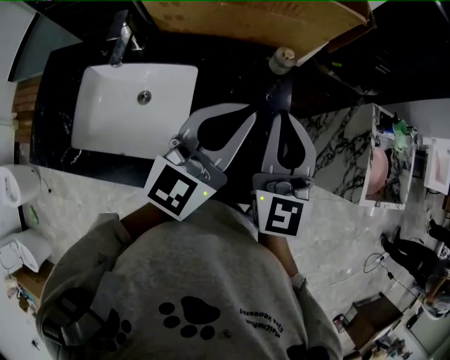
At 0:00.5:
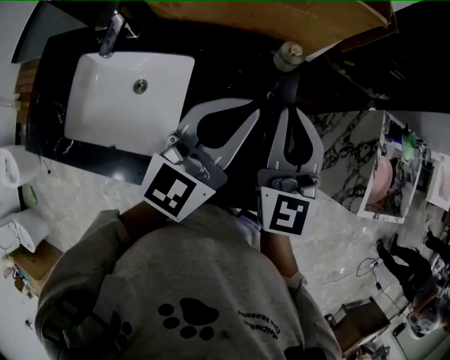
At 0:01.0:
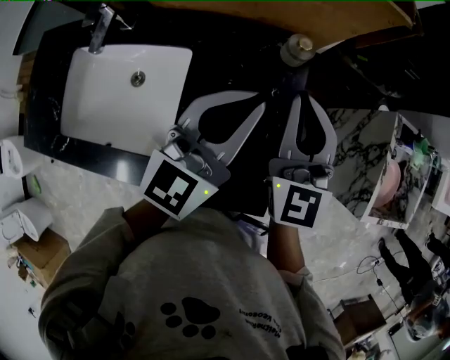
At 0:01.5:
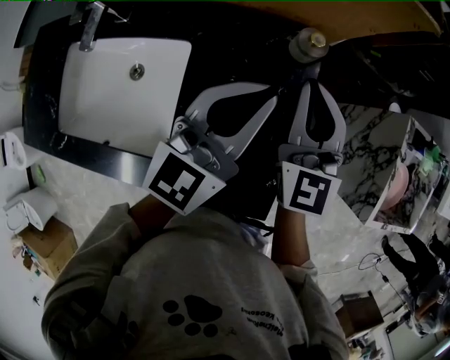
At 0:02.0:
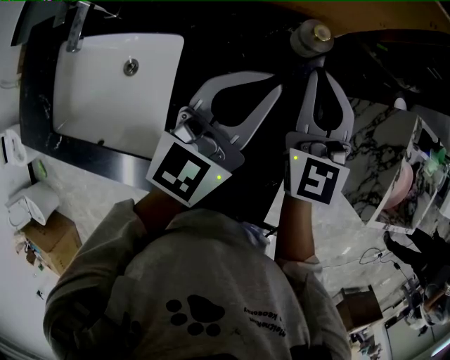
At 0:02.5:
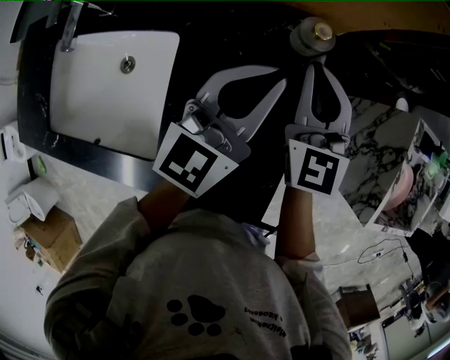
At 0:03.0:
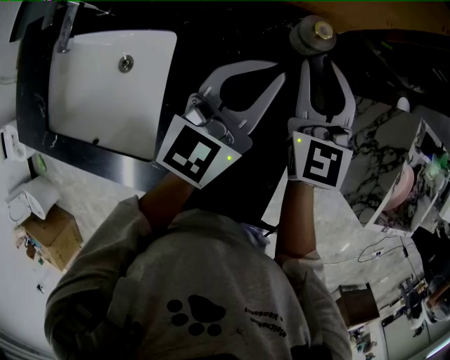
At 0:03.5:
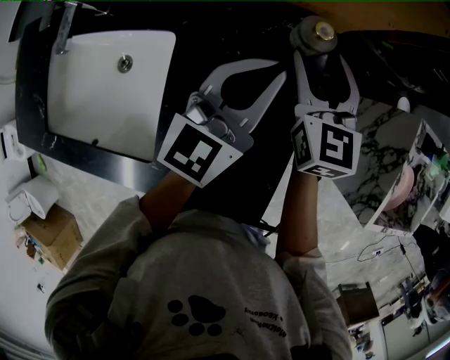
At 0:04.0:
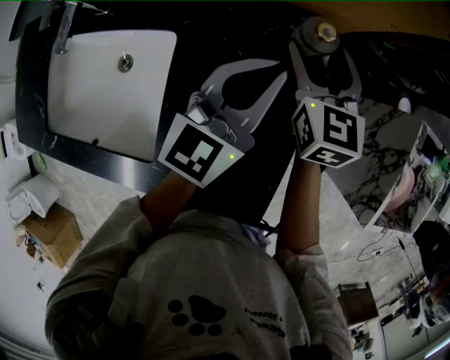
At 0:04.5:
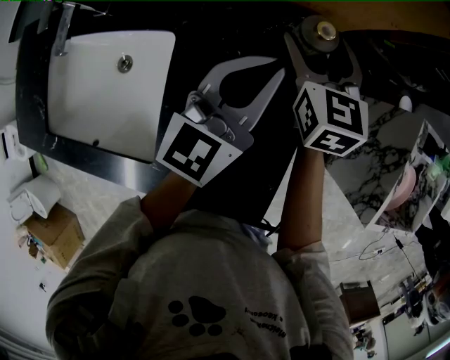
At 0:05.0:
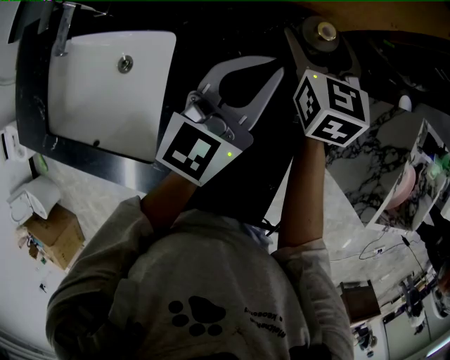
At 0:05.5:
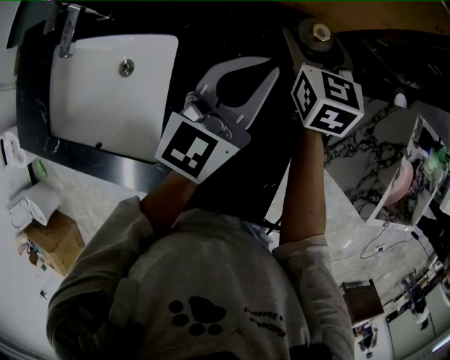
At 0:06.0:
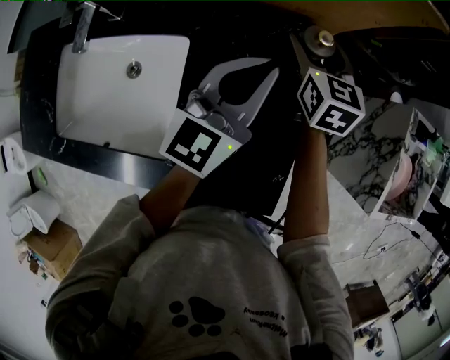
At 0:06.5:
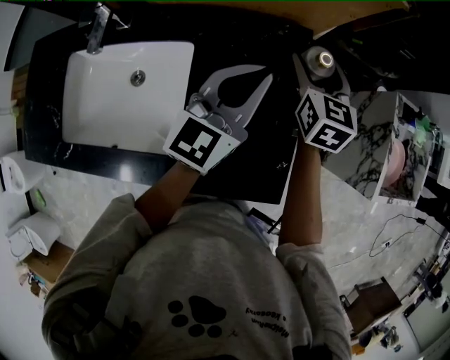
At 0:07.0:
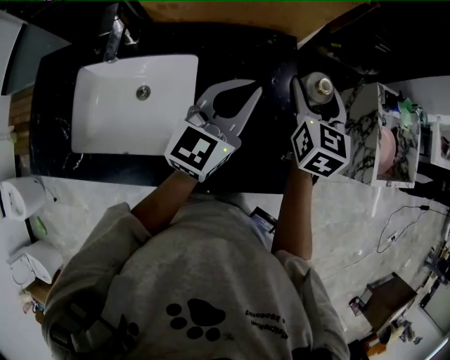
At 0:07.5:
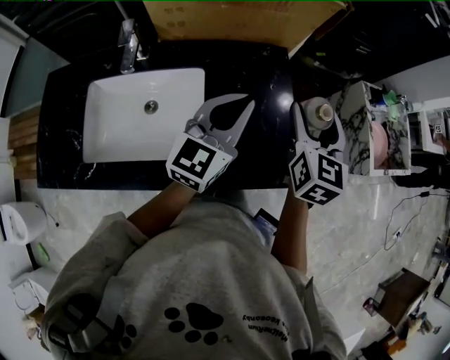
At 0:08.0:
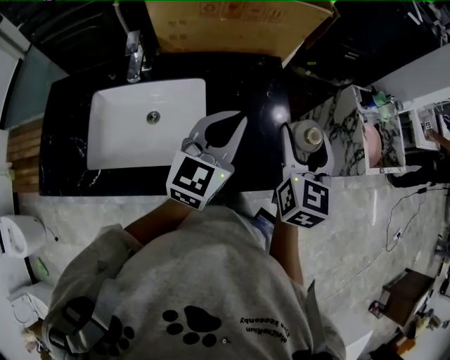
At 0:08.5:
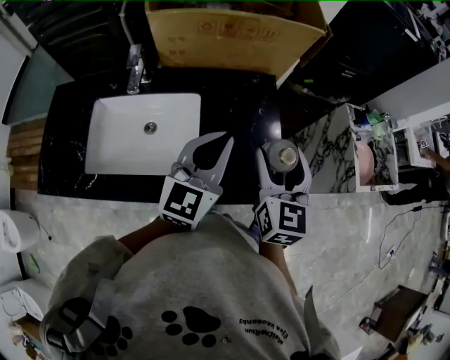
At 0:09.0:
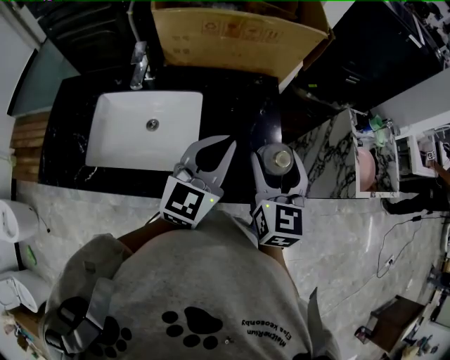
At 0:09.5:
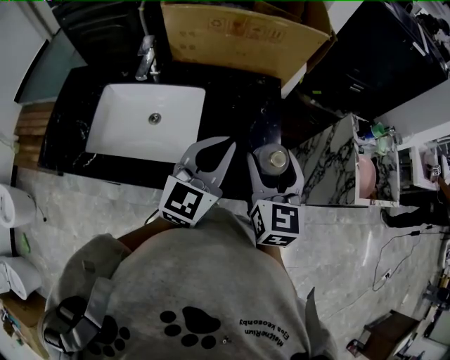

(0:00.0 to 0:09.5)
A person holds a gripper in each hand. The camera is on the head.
0:00.0 - 0:02.0: The right gripper is displaced forward and downward by some 20 cm; the left gripper goes approximately 15 cm downward and forward.
0:02.0 - 0:04.0: The left gripper moves approximately 5 cm. Meanwhile the right gripper travels downward and forward by roughly 10 cm, and opens its fingers.
0:04.0 - 0:05.5: The grippers stay close to where they were, moving slightly.
0:05.5 - 0:07.5: The left gripper shifts about 20 cm backward and upward. The right gripper shifts about 30 cm backward and upward, and rotates roughly 30 degrees.
0:07.5 - 0:09.5: Both grippers travel together backward, about 10 cm.

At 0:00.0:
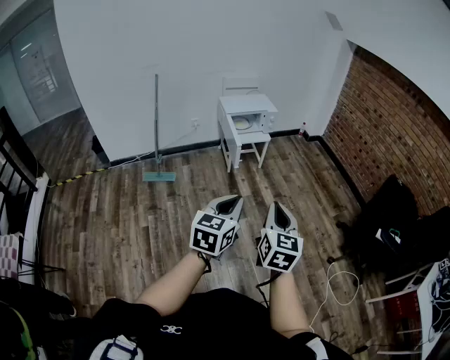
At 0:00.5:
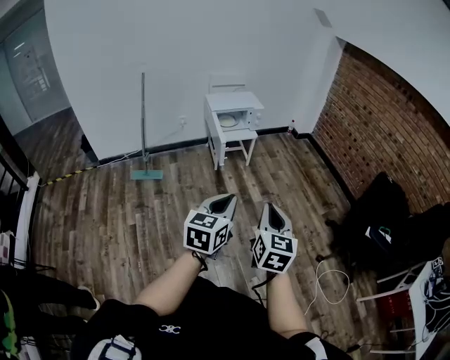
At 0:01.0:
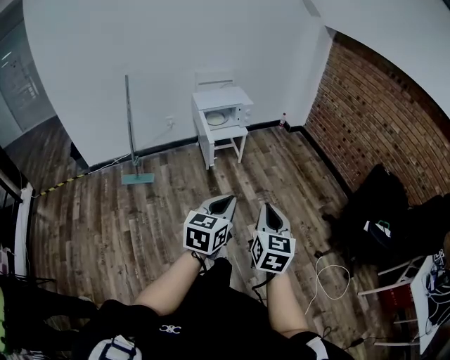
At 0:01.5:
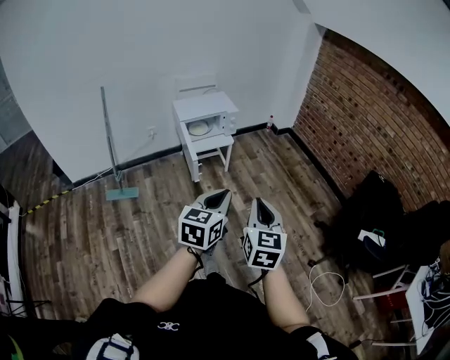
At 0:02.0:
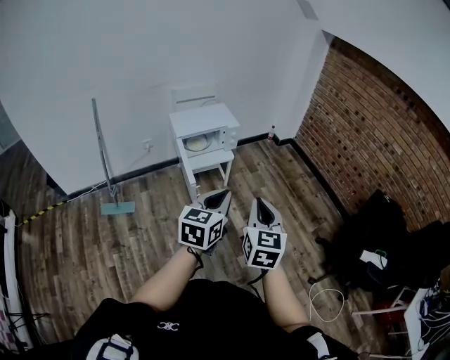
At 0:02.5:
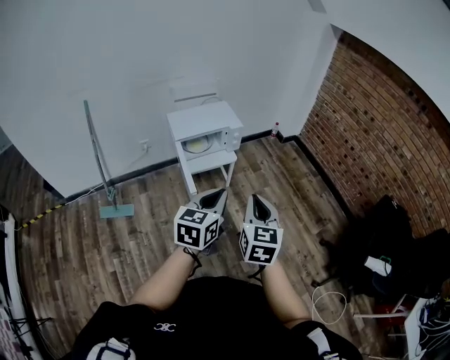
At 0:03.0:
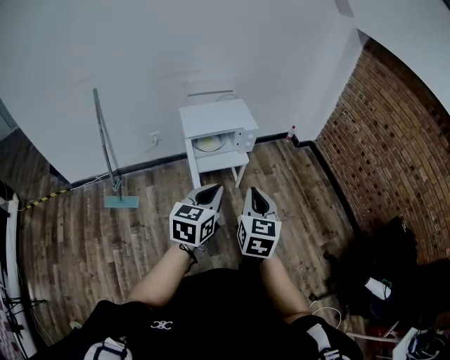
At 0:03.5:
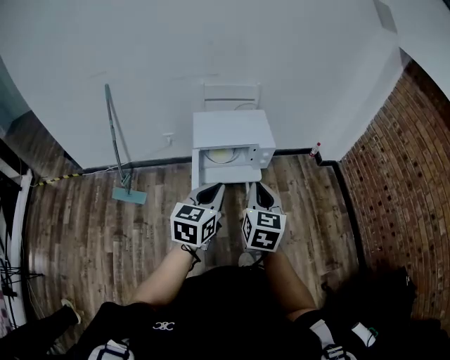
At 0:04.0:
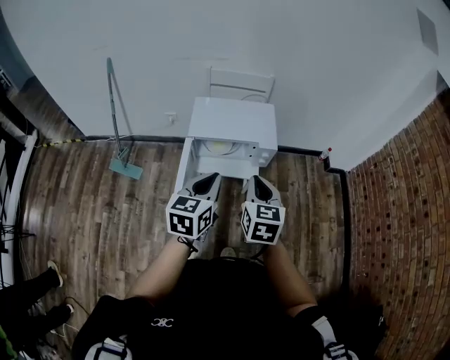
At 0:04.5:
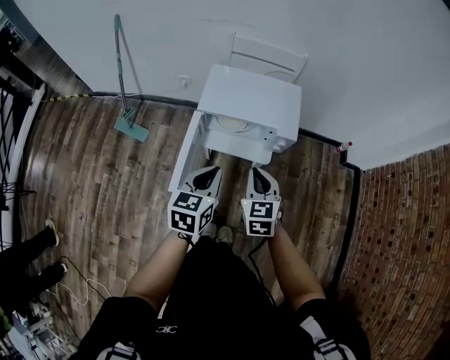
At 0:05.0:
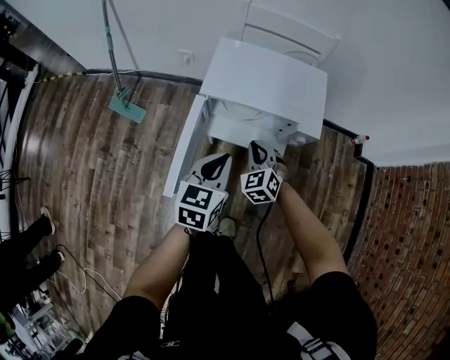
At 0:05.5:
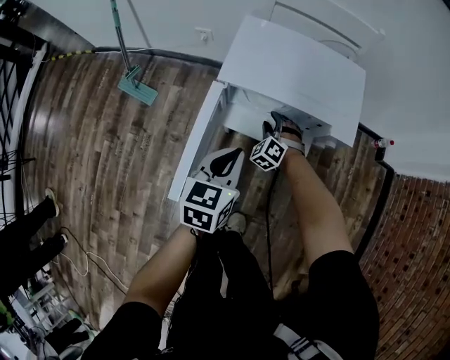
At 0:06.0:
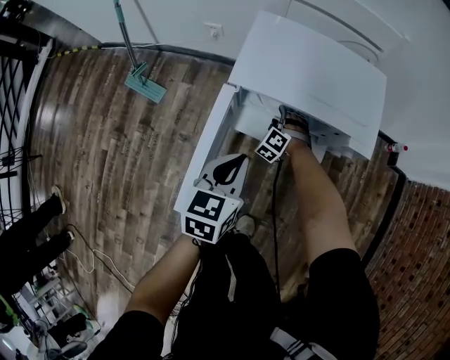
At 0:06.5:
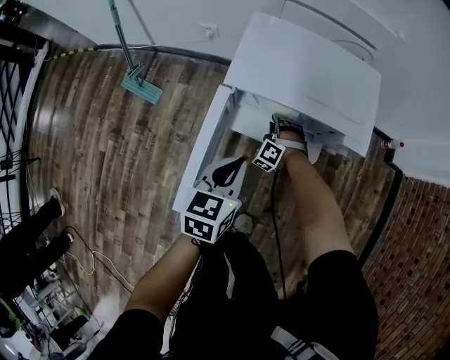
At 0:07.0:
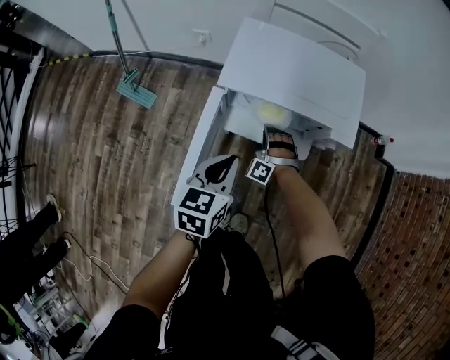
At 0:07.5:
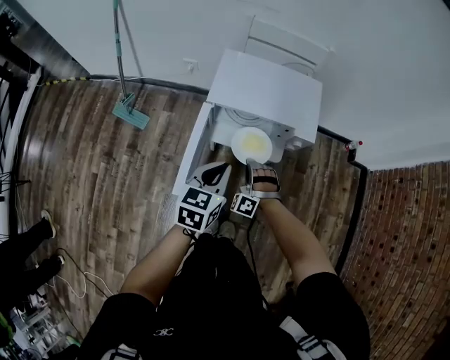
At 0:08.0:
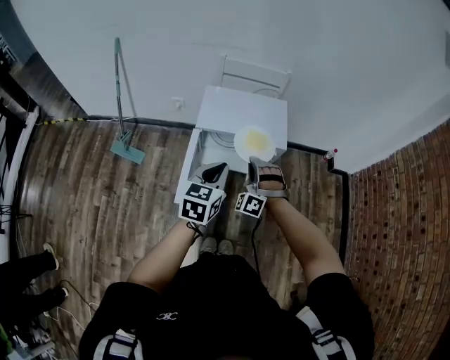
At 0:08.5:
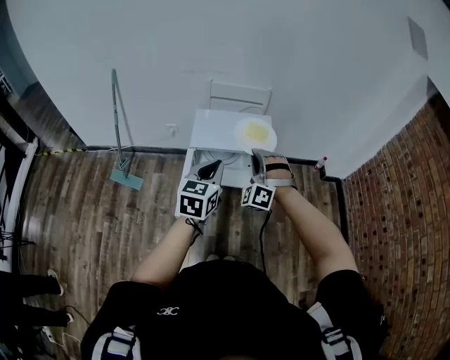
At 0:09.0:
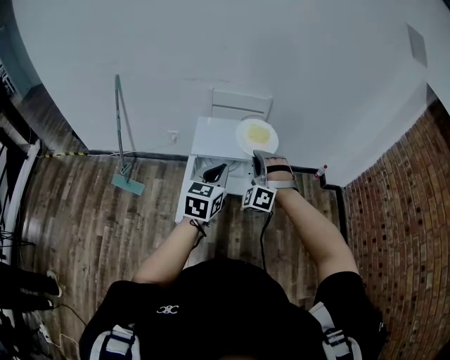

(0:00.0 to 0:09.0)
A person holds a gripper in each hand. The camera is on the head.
0:00.0 - 0:02.0: Both grippers travel together forward, some 35 cm.
0:02.0 - 0:04.5: Both grippers are carried some 50 cm. The right gripper turns by roughly 50 degrees; the left gripper turns by about 40 degrees.
0:04.5 - 0:07.0: The left gripper is displaced downward and forward by about 20 cm. The right gripper goes roughly 35 cm downward and forward, rotates around the line of its fingers by about 80 degrees, counterclockwise from behind, and opens and closes again.
0:07.0 - 0:09.0: The right gripper heads upward, covering some 50 cm, and changes its angle by roughly 20 degrees. Meanwhile the left gripper shifts roughly 30 cm upward, and swivels roughly 20 degrees.

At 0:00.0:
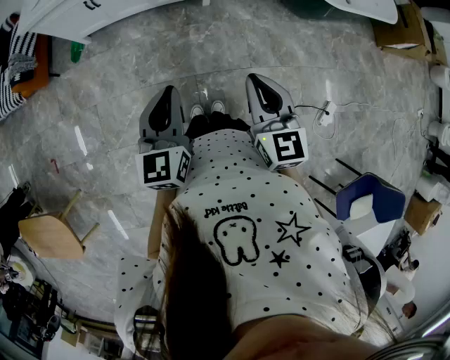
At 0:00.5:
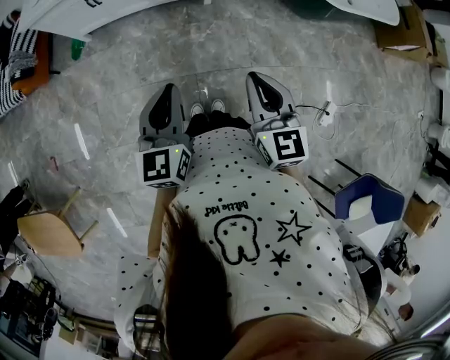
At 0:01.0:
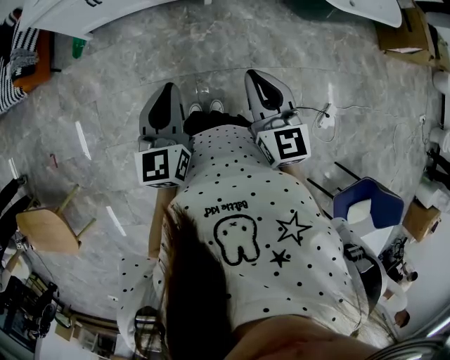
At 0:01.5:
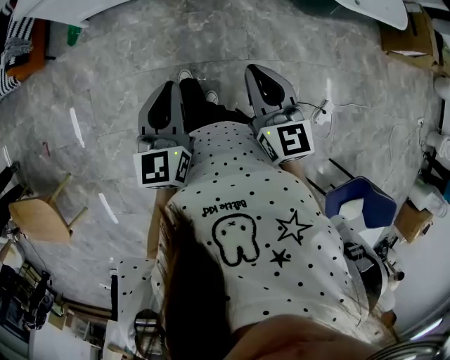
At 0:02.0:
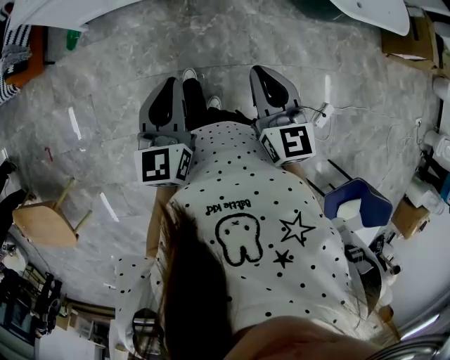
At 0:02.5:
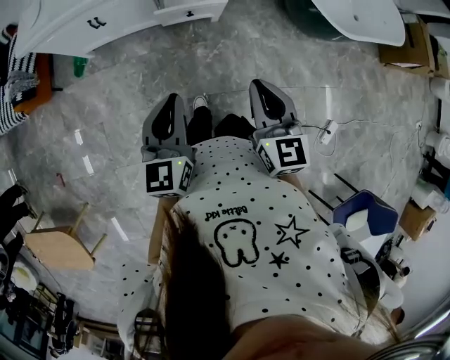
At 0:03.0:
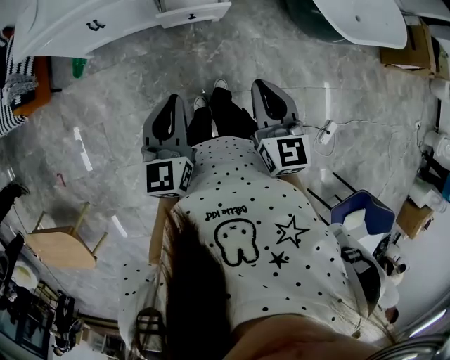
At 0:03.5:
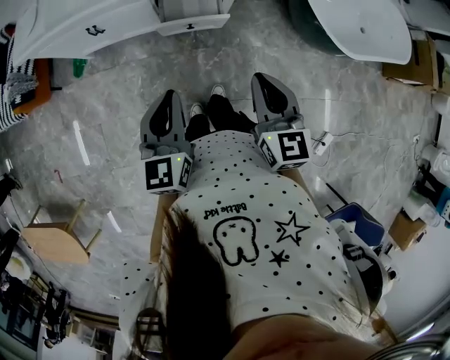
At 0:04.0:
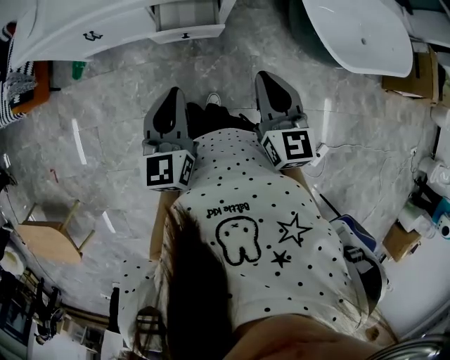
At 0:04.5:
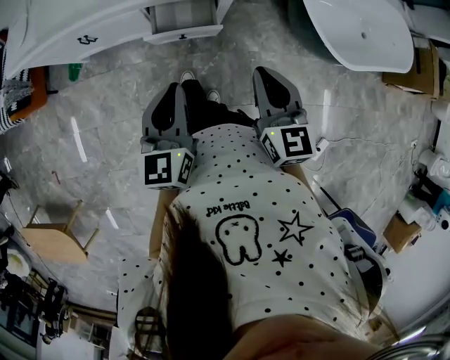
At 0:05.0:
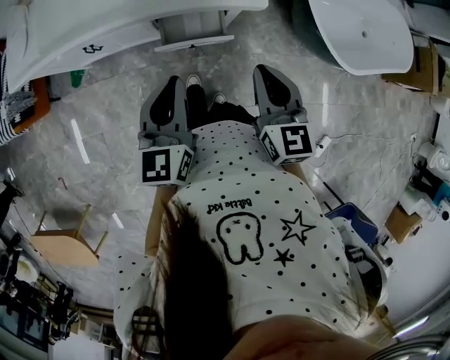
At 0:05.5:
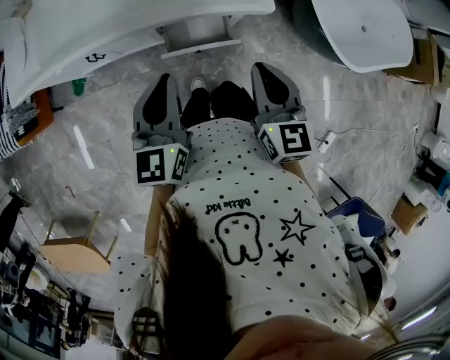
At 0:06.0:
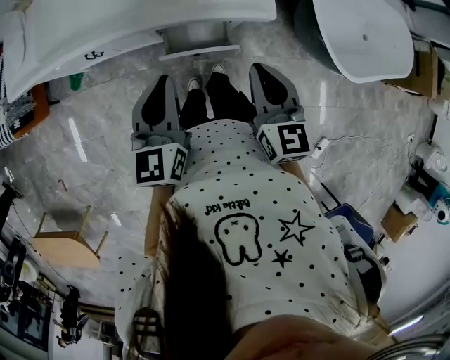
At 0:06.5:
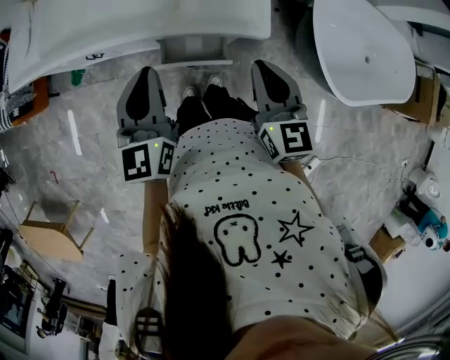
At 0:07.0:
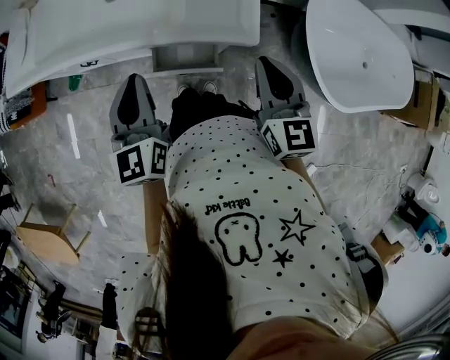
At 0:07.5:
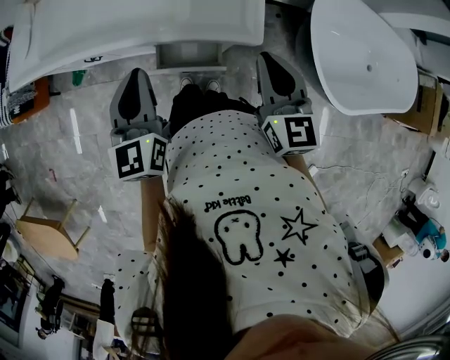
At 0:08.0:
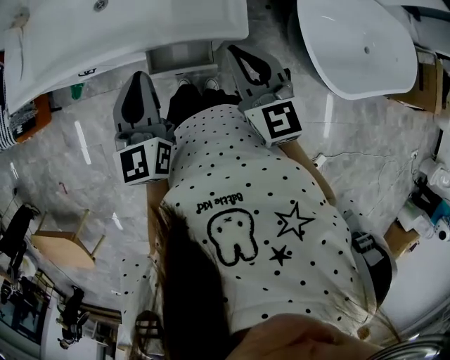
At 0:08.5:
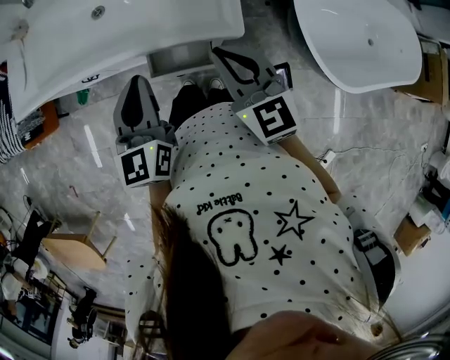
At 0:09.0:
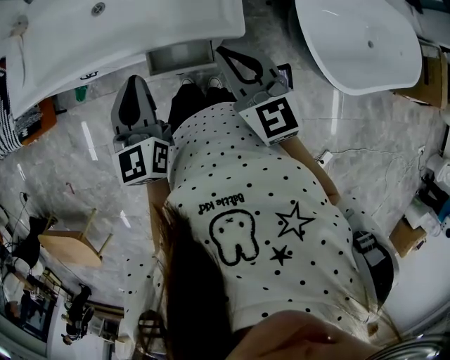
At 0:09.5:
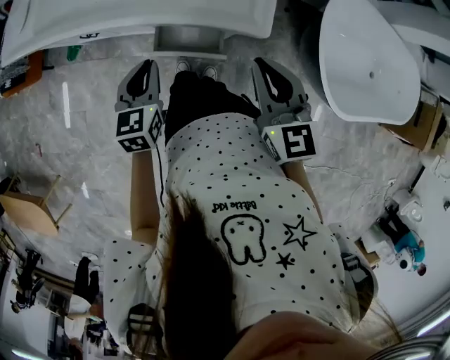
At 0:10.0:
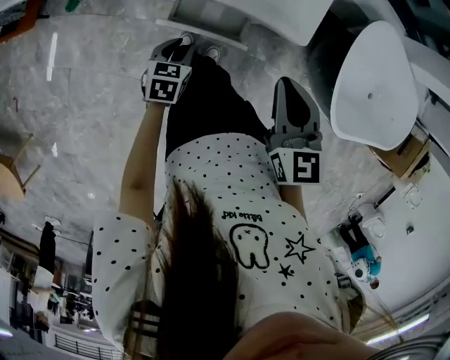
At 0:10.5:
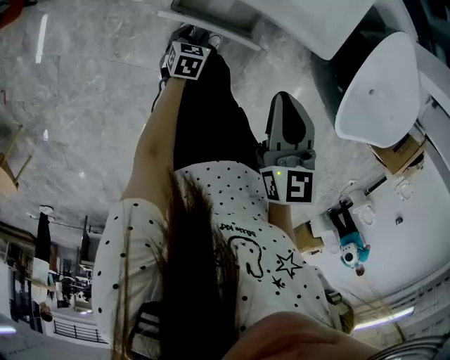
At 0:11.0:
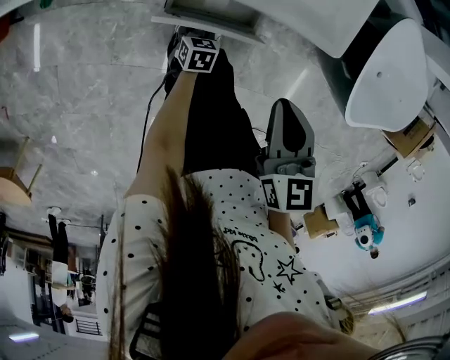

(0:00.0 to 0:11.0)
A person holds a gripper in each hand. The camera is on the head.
0:00.0 - 0:02.0: The grippers both shift forward by roughly 10 cm.
0:02.0 - 0:03.5: Both grippers move forward, about 20 cm.
0:03.5 - 0:05.5: Both grippers move forward, about 20 cm.
0:05.5 - 0:07.5: The left gripper shifts roughly 5 cm forward. Meanwhile the right gripper is displaced forward and to the right by some 15 cm.
0:09.0 - 0:11.0: The left gripper moves downward, roughly 50 cm, angles its fingers downward, by about 50 degrees, and opens its fingers. Meanwhile the right gripper is displaced downward by some 15 cm, and swivels roughly 30 degrees.
